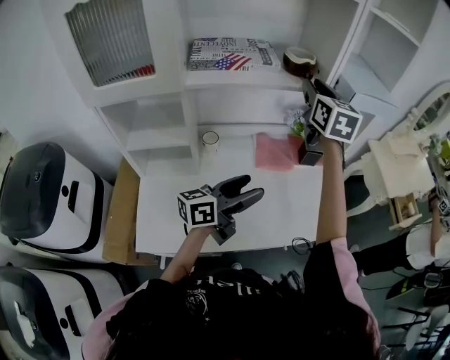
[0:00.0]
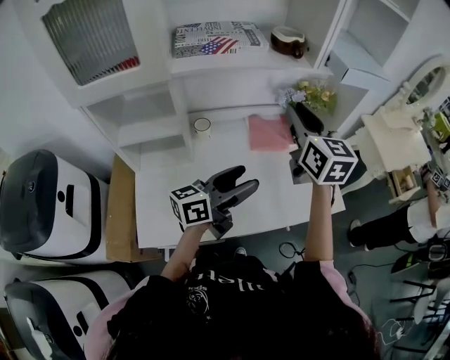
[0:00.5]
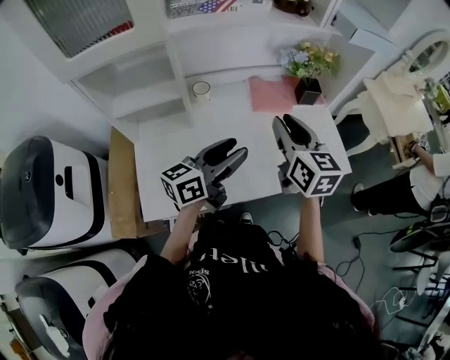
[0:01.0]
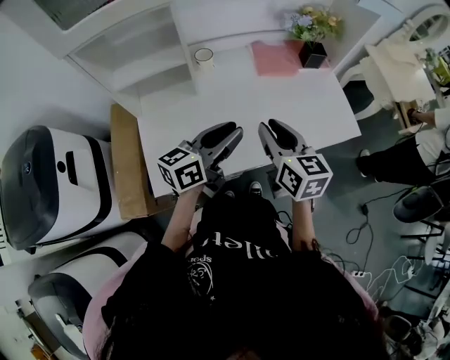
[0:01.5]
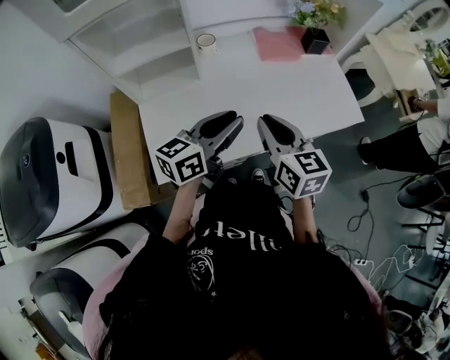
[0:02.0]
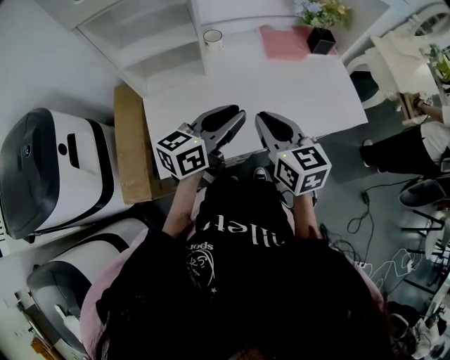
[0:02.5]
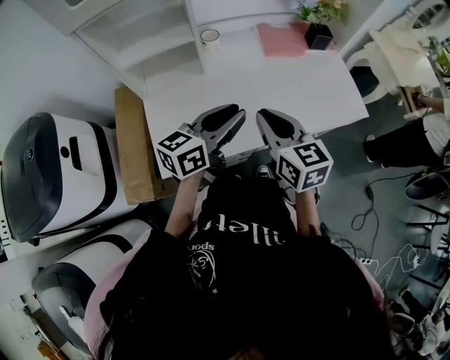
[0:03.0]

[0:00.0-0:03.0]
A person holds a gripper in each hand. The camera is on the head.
0:00.0 to 0:01.5: The left gripper shifts roughly 15 cm backward, to the left and downward, and closes its fingers; the right gripper travels backward and downward by about 40 cm, and swivels approximately 20 degrees.
0:01.5 to 0:03.0: The right gripper heads backward, covering some 5 cm.

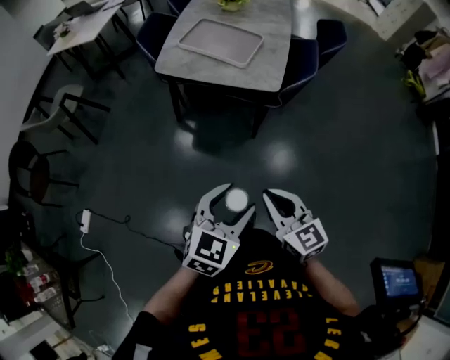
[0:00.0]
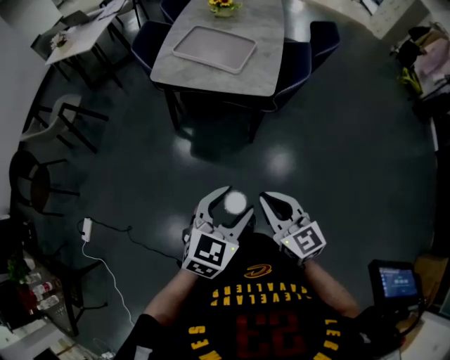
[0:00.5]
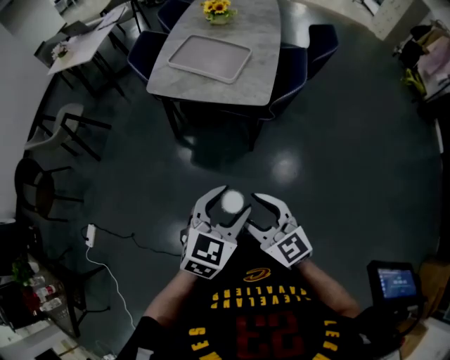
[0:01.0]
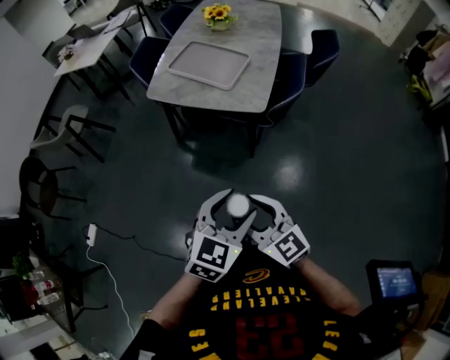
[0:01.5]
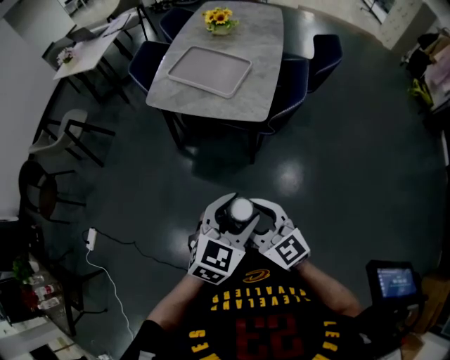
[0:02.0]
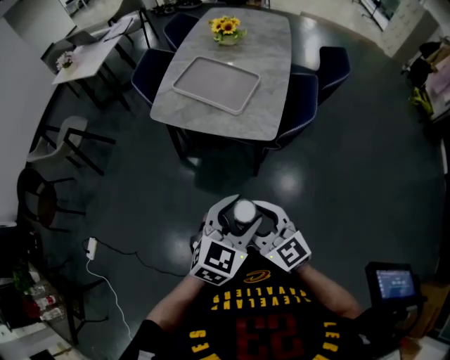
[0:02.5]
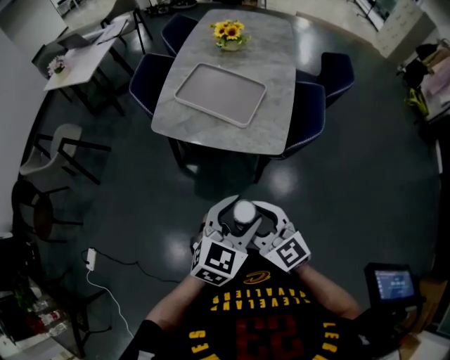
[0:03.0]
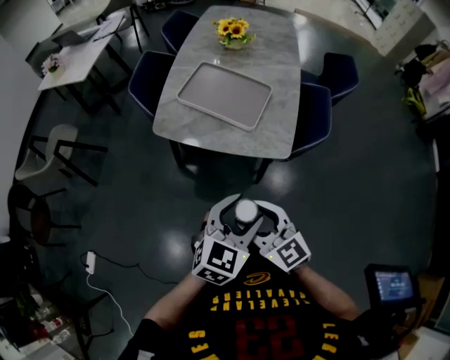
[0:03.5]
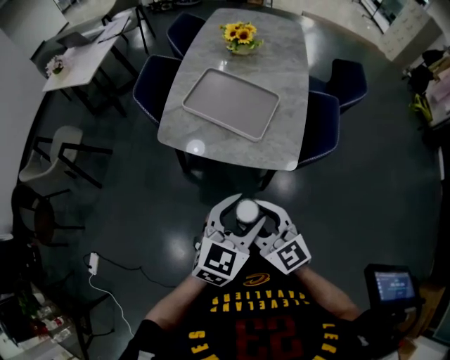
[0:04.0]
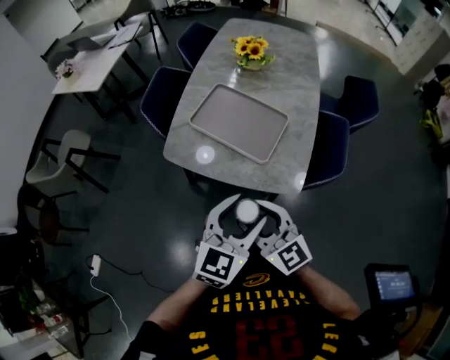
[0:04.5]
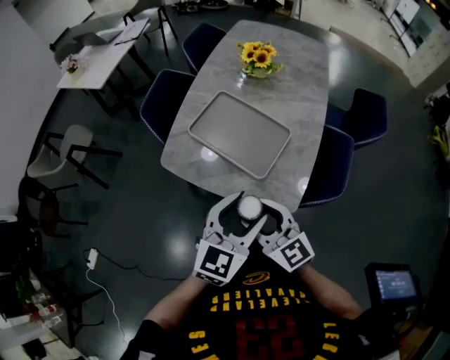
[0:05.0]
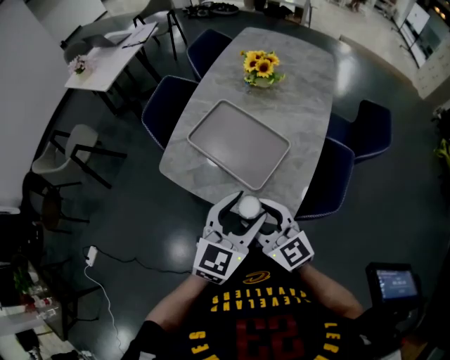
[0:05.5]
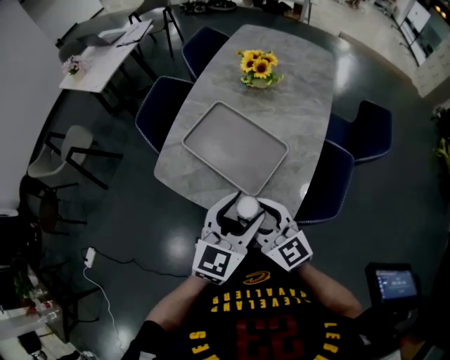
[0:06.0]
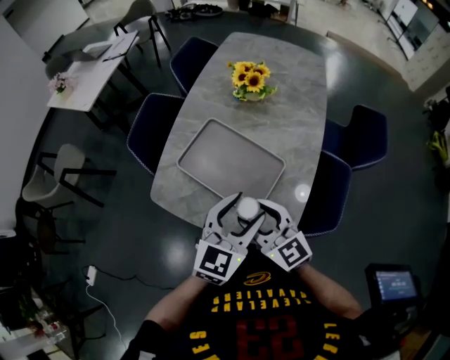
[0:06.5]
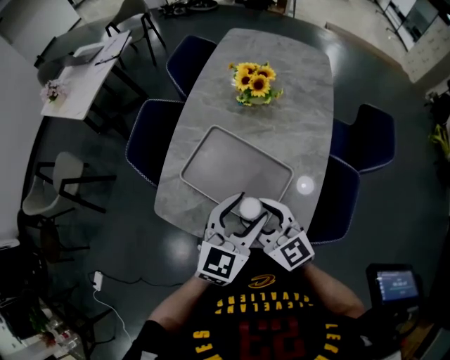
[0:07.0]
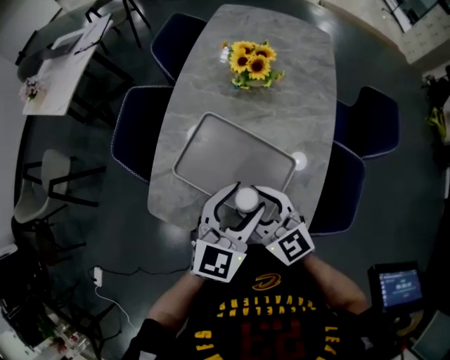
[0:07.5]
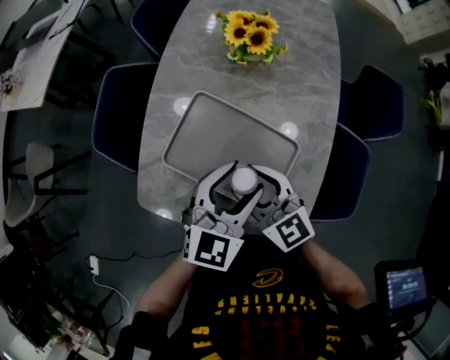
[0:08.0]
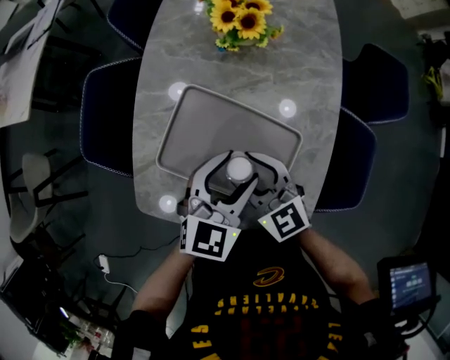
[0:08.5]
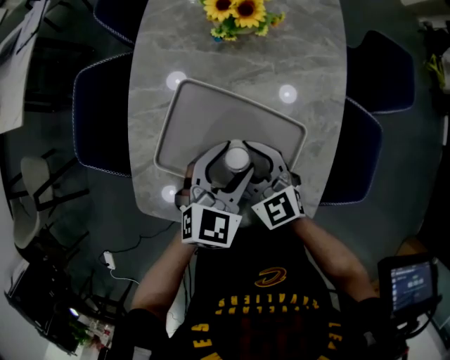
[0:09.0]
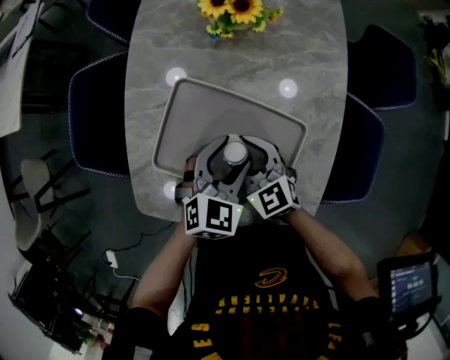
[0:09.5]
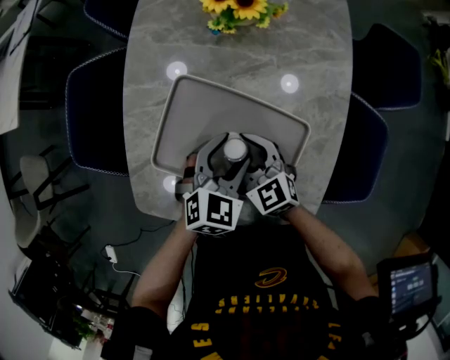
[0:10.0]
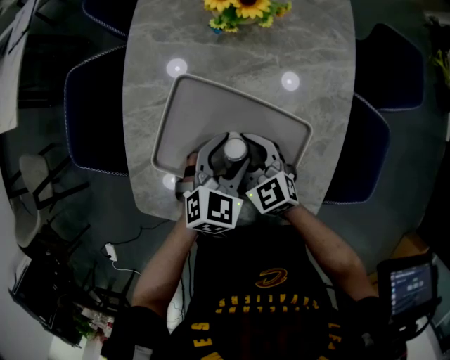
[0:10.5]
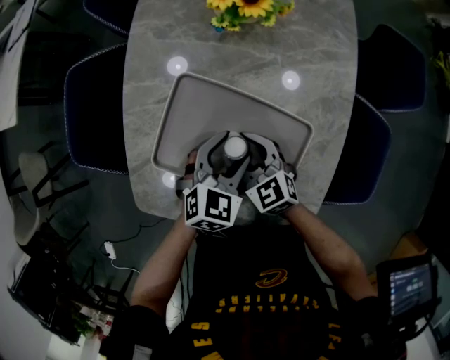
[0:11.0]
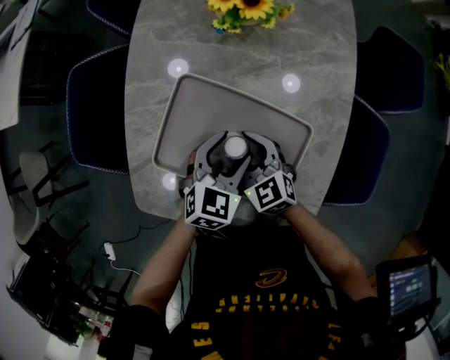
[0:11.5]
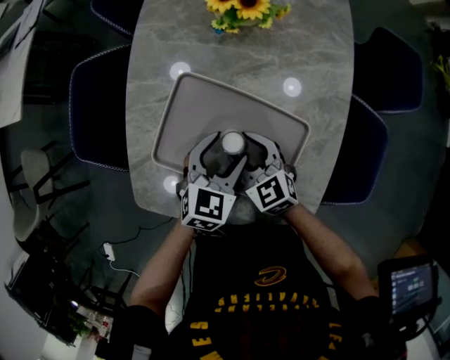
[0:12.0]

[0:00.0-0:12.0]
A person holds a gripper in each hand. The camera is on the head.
0:00.0 to 0:02.0: The right gripper shifts some 5 cm forward, and opens its fingers. The left gripper is displaced to the right and forward by roughly 10 cm.
0:02.0 to 0:04.0: The two grippers go some 25 cm forward and to the left.
0:04.0 to 0:06.0: The right gripper is displaced forward and to the right by about 25 cm. Meanwhile the left gripper shifts approximately 20 cm forward.
0:06.0 to 0:08.0: Both grippers move forward, some 20 cm.
0:08.0 to 0:10.0: The grippers both shift downward by approximately 15 cm. The left gripper swivels some 20 degrees.
0:10.0 to 0:12.0: The grippers move only a little.

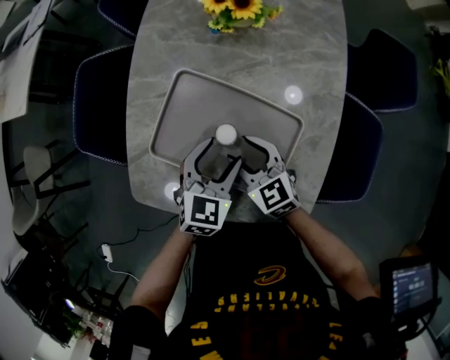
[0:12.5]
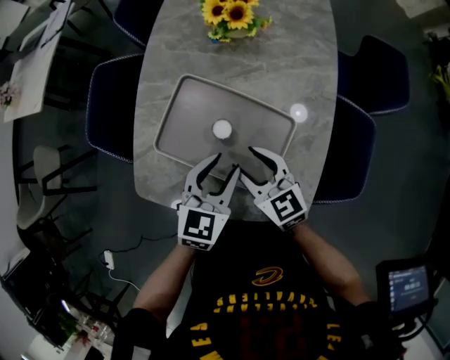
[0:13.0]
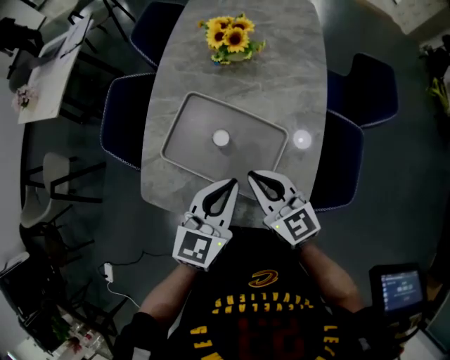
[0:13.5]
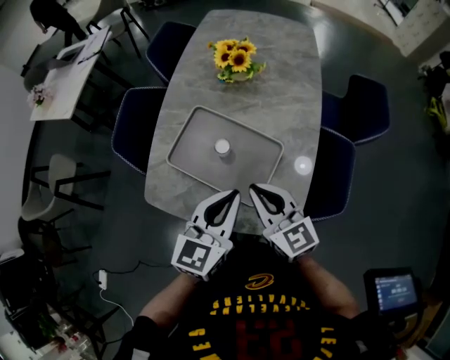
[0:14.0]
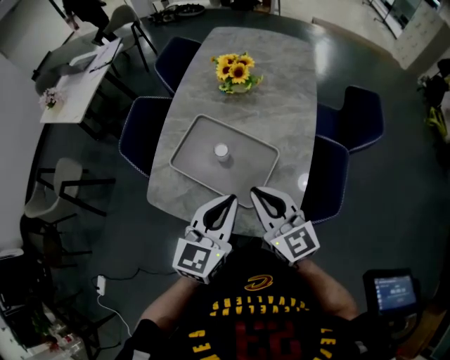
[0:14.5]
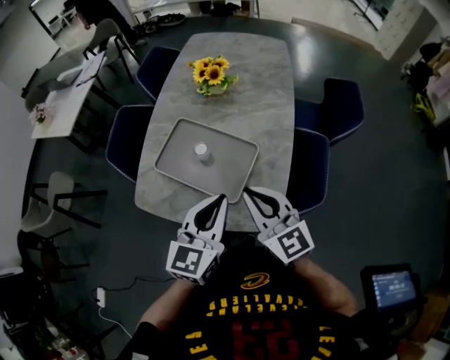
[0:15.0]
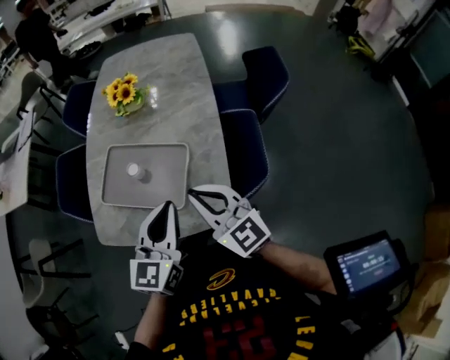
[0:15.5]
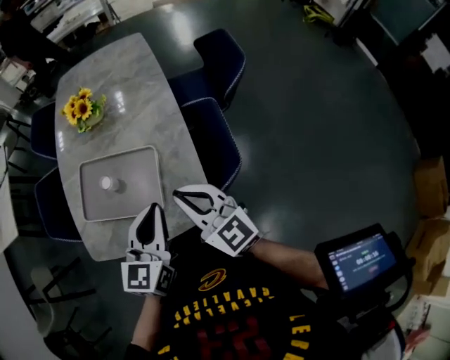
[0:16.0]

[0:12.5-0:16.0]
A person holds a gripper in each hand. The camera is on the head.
0:12.5 to 0:14.5: Both grippers move upward and backward, approximately 25 cm. The right gripper turns by approximately 30 degrees, and closes its fingers. The left gripper turns by about 30 degrees, and closes.
0:14.5 to 0:16.0: The left gripper heads to the right, covering approximately 10 cm. The right gripper travels to the right and backward by approximately 15 cm.

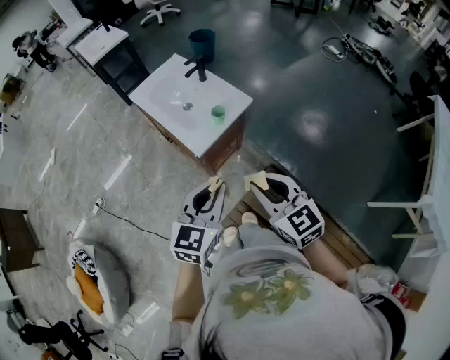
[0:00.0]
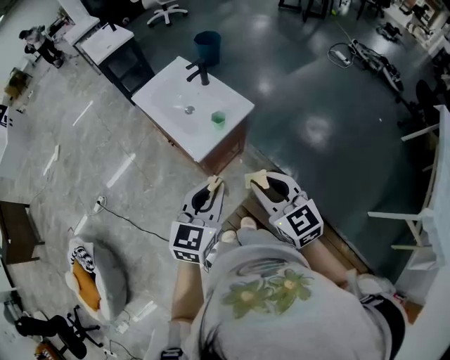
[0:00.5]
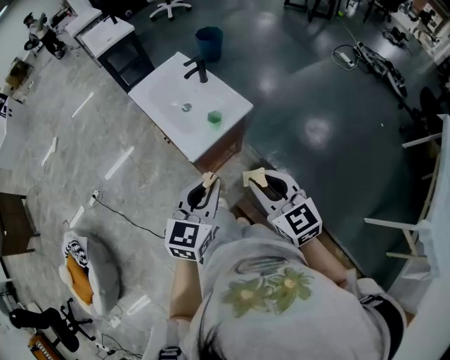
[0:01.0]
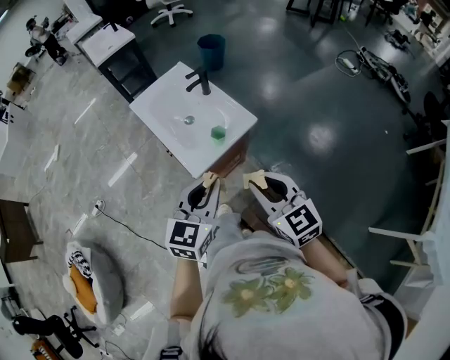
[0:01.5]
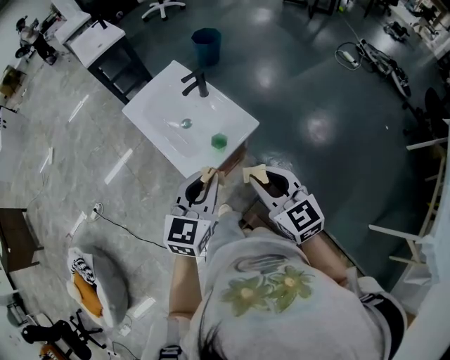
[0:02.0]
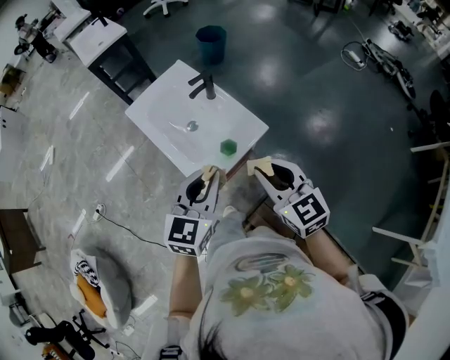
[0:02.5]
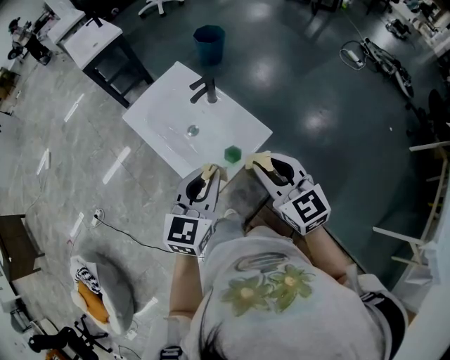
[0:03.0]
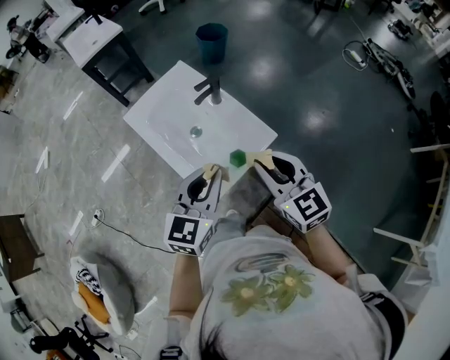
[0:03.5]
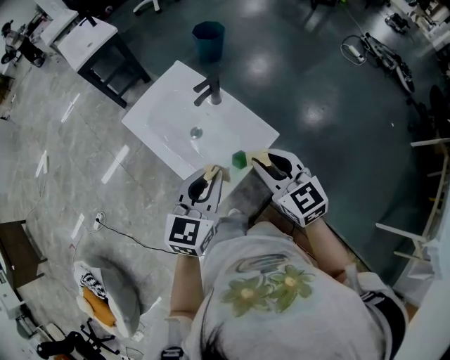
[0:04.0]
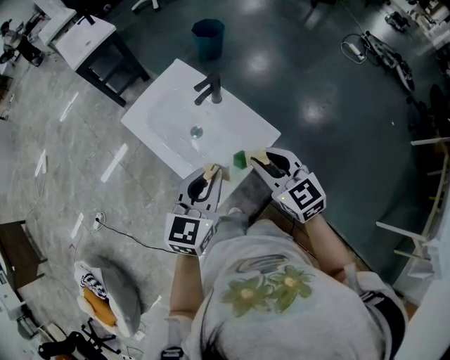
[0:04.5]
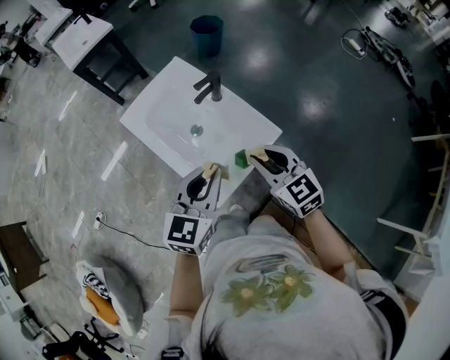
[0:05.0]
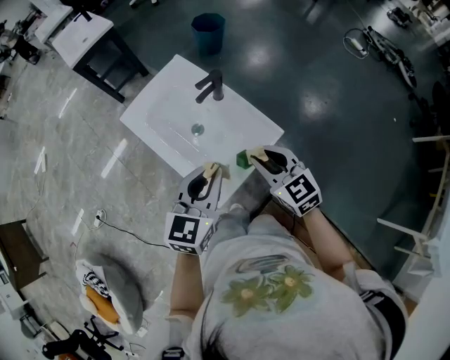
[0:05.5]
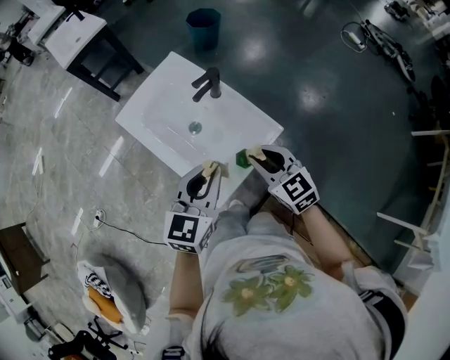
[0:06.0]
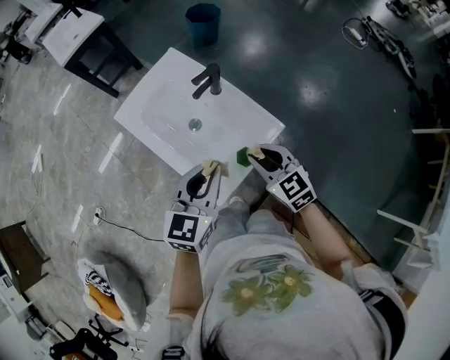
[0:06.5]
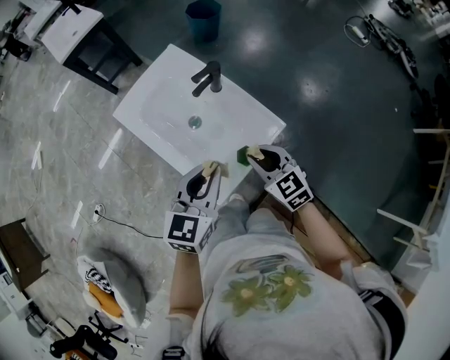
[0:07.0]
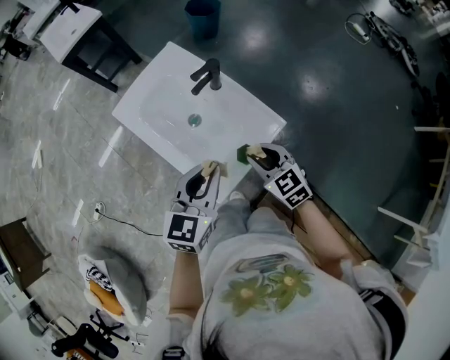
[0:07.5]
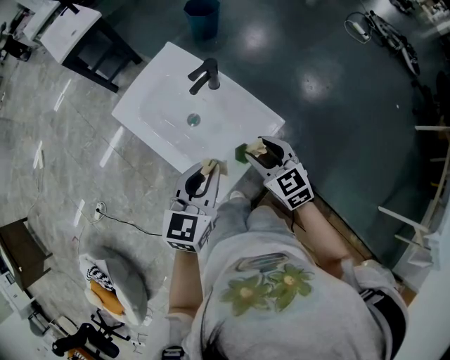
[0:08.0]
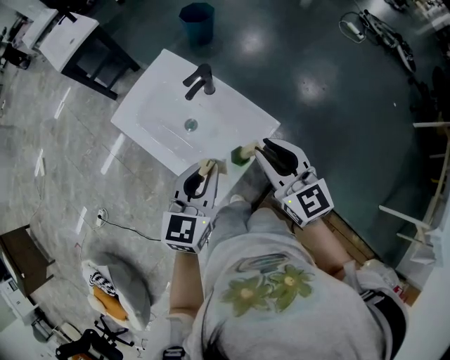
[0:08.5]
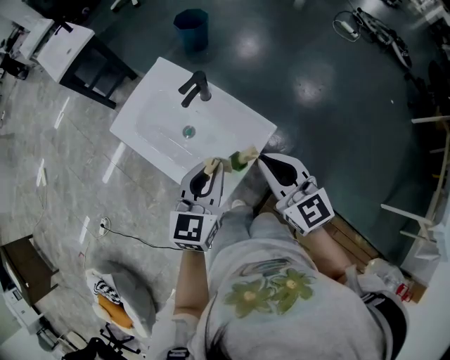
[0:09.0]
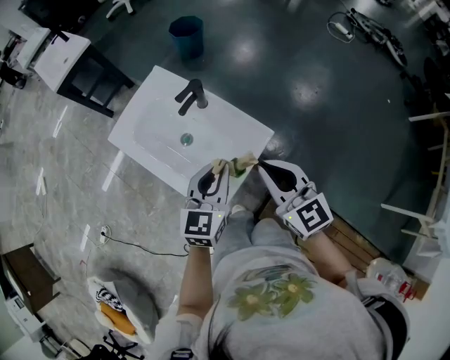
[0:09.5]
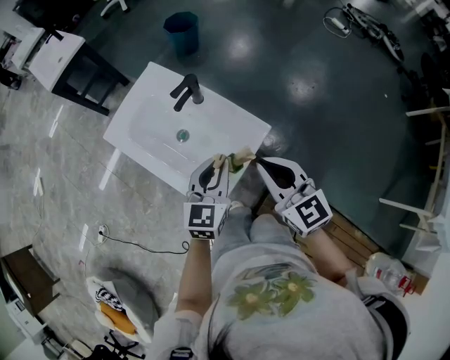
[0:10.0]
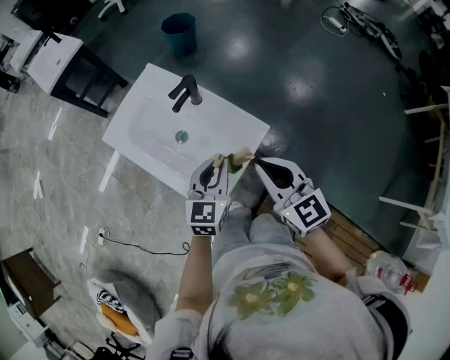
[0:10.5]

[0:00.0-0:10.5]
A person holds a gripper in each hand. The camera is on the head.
0:00.0 to 0:02.0: The two grippers go about 25 cm forward.
0:02.0 to 0:04.0: The right gripper shifts some 15 cm forward, while the left gripper is displaced forward and to the left by approximately 15 cm.
0:04.0 to 0:06.5: The right gripper travels downward by about 10 cm. Meanwhile the left gripper changes place by roughly 5 cm.
0:06.5 to 0:08.5: The right gripper goes about 10 cm upward, and turns by some 20 degrees.
0:08.5 to 0:10.5: The left gripper shifts approximately 10 cm downward.
